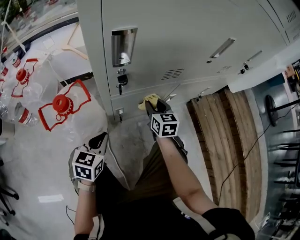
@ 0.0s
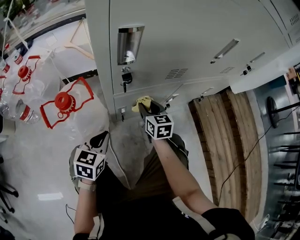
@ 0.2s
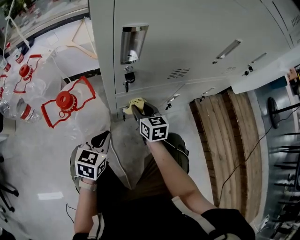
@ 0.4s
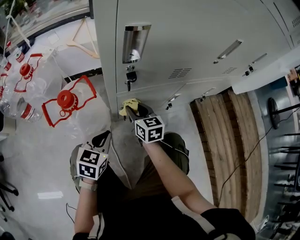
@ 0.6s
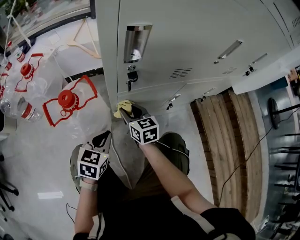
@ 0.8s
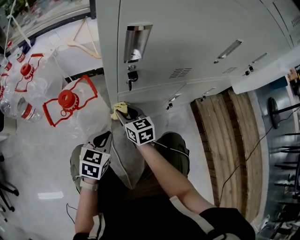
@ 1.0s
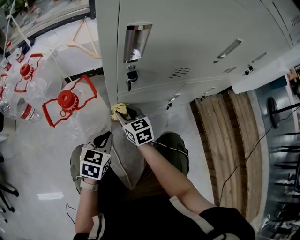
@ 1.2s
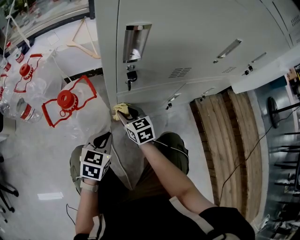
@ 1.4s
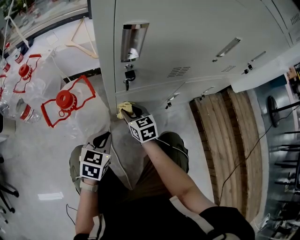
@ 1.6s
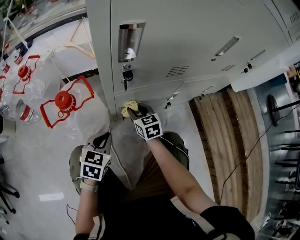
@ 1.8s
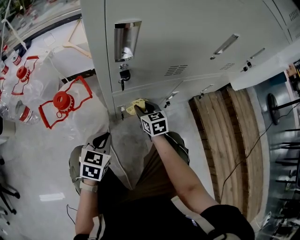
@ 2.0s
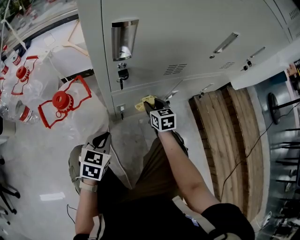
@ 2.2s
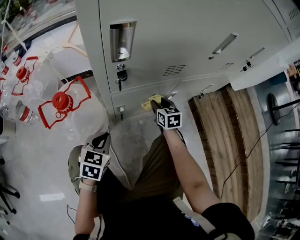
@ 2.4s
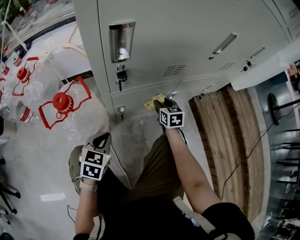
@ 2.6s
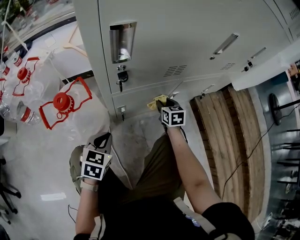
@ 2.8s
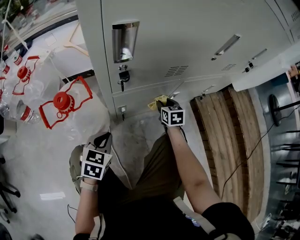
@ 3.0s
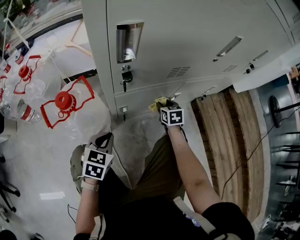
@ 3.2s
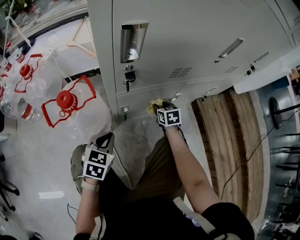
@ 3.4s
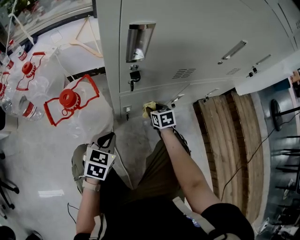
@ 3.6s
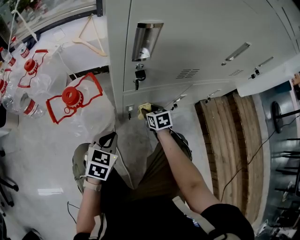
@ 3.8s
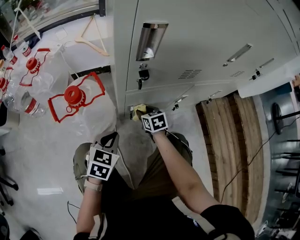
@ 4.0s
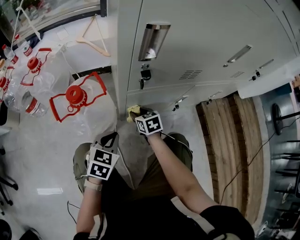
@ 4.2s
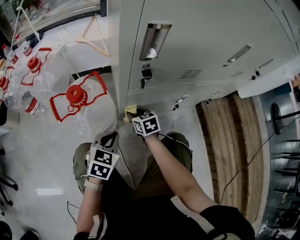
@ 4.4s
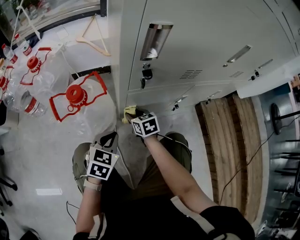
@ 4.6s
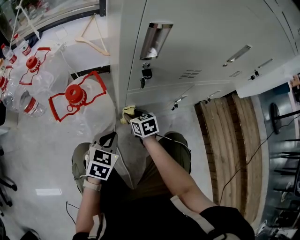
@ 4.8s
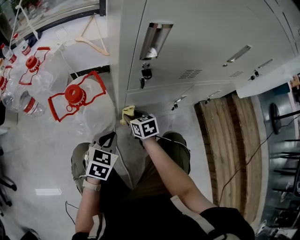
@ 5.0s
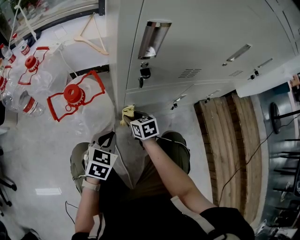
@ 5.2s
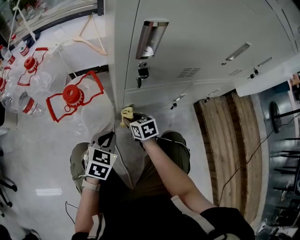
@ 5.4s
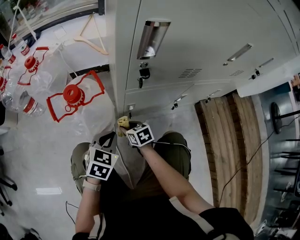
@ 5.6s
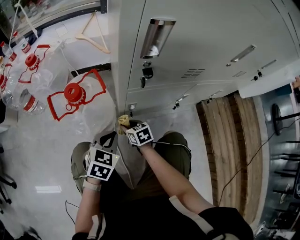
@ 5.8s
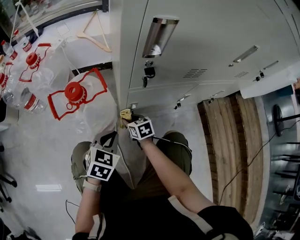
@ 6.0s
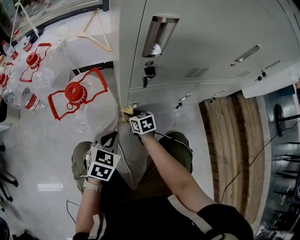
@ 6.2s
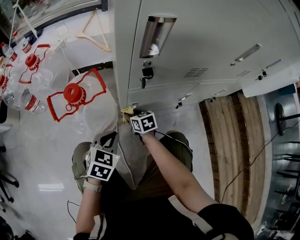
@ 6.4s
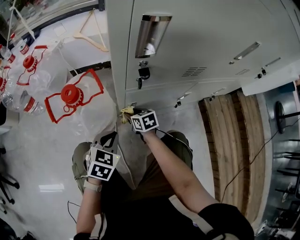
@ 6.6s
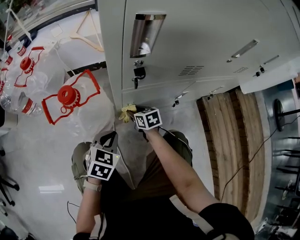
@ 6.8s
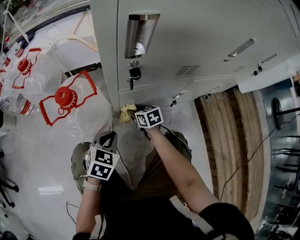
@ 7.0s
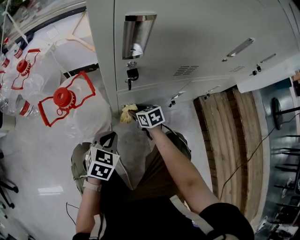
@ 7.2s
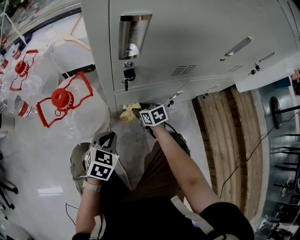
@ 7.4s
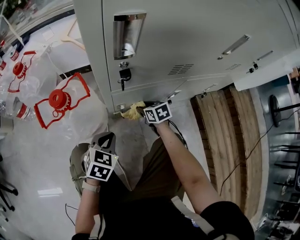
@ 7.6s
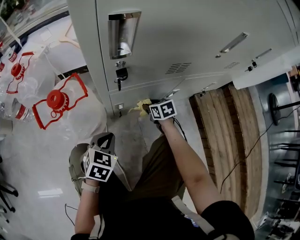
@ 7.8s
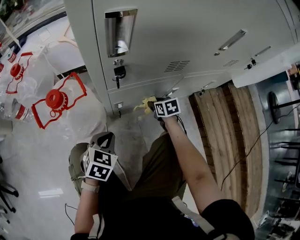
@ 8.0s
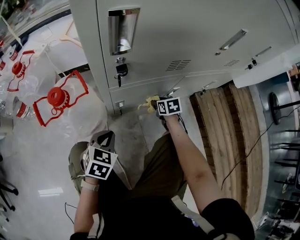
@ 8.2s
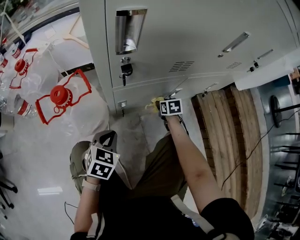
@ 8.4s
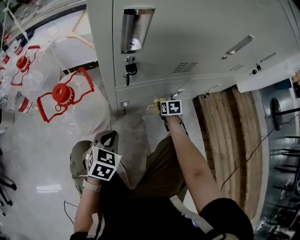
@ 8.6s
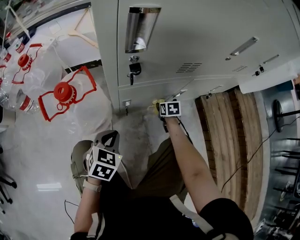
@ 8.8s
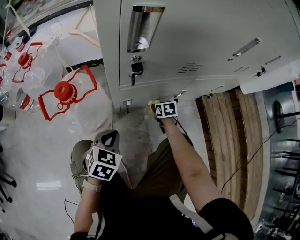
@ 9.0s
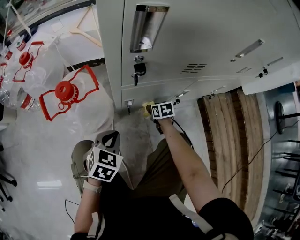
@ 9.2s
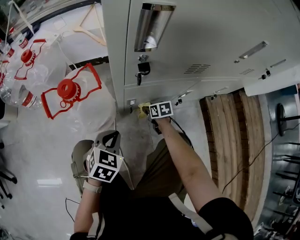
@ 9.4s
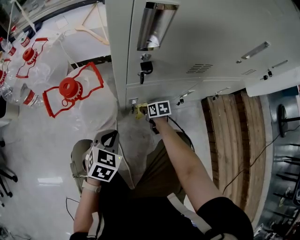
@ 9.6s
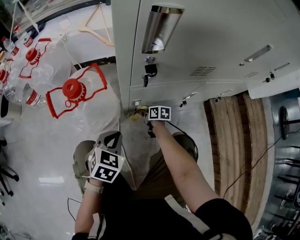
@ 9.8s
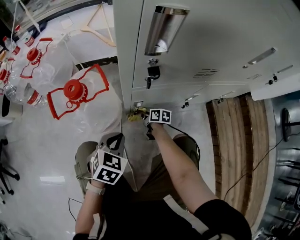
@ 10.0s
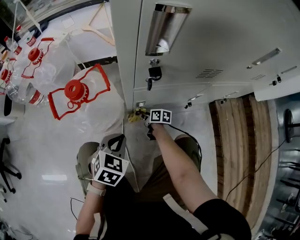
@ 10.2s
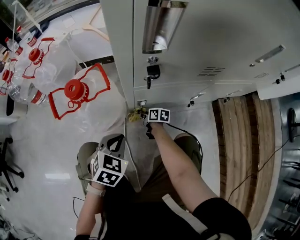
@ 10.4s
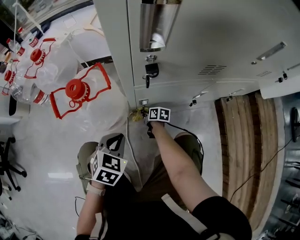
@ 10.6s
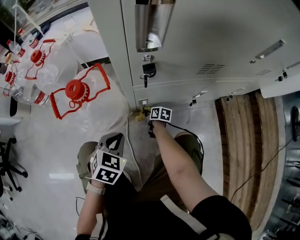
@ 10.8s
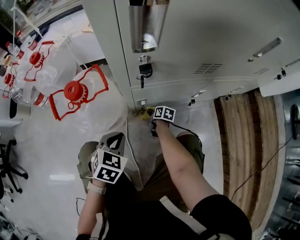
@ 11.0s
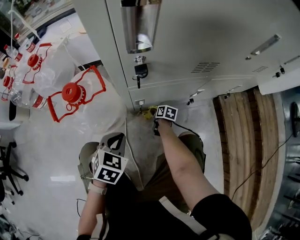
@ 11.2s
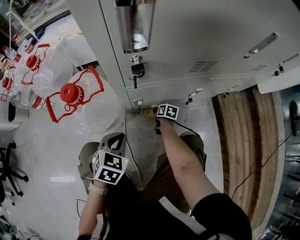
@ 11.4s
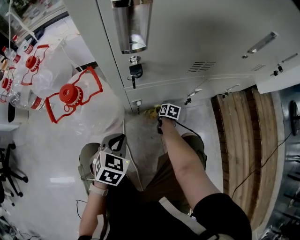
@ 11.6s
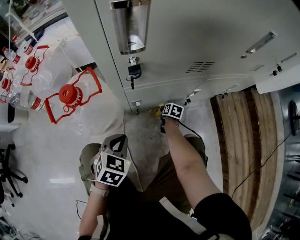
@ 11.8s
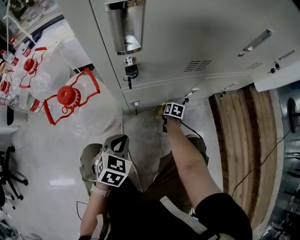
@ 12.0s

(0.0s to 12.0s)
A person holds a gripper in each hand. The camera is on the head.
0.0s - 1.6s: The right gripper travels to the left by some 15 cm.
1.6s - 3.0s: The right gripper goes some 20 cm to the right, and changes its angle by roughly 20 degrees.
3.0s - 4.4s: The right gripper heads to the left, covering roughly 20 cm, and swivels approximately 20 degrees.
4.4s - 6.0s: The right gripper moves downward, roughly 5 cm.
6.0s - 7.6s: The right gripper heads to the right, covering approximately 15 cm.
7.6s - 9.0s: The right gripper travels downward and to the right by about 10 cm.
9.0s - 10.4s: The right gripper travels to the left and downward by roughly 20 cm, and changes its angle by about 40 degrees.
10.4s - 12.0s: The right gripper heads to the right, covering roughly 20 cm, and swivels roughly 30 degrees.

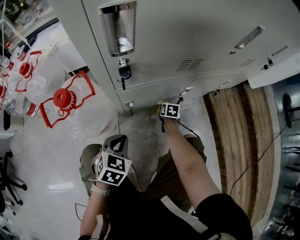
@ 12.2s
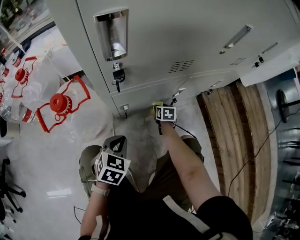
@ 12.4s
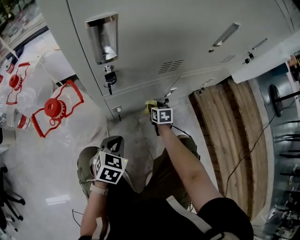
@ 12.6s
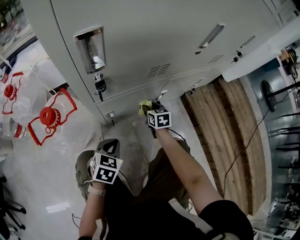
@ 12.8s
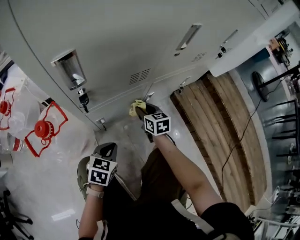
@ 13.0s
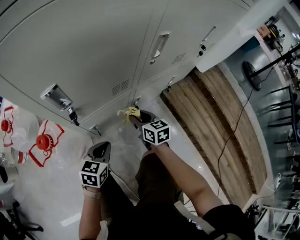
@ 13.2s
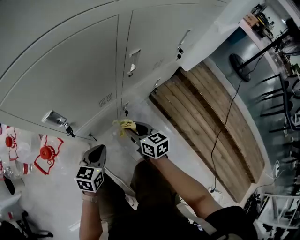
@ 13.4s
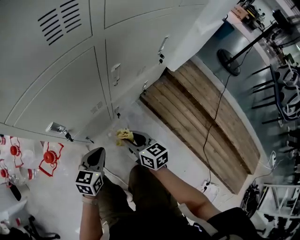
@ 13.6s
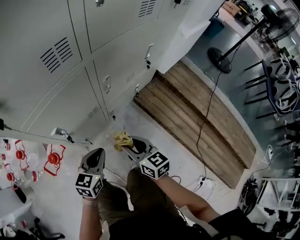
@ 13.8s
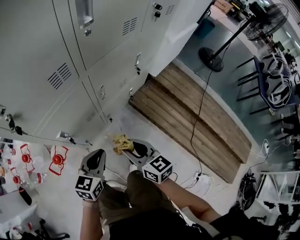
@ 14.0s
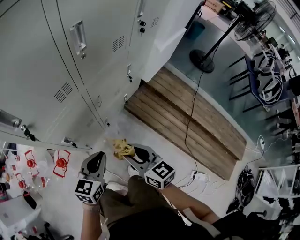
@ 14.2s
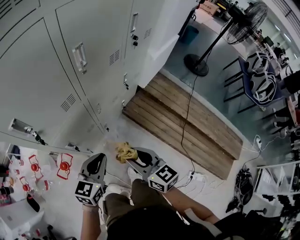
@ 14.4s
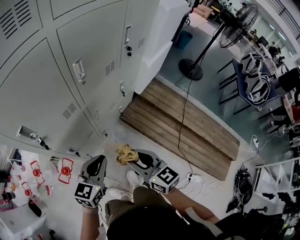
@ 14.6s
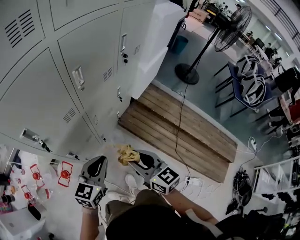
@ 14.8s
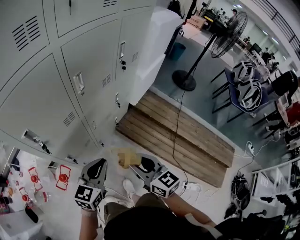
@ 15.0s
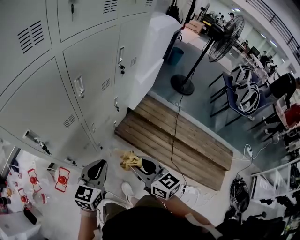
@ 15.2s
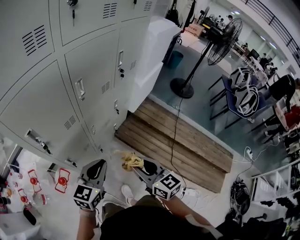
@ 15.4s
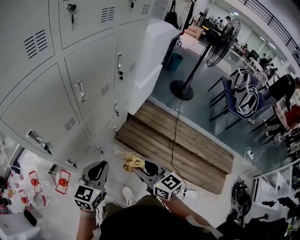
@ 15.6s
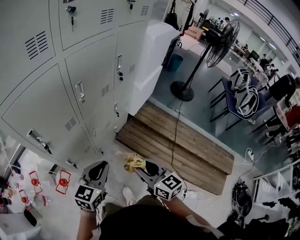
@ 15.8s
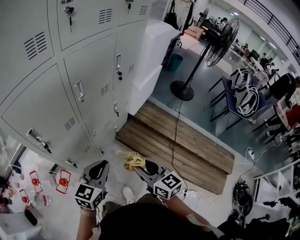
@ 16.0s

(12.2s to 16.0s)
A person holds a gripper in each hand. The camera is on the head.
12.2s - 13.4s: The left gripper is displaced upward and to the right by about 20 cm, and swivels approximately 30 degrees. Meanwhile the right gripper shifts approximately 40 cm upward, and tilts its fingers approximately 30 degrees upward.
13.4s - 14.8s: The left gripper swings up and down, roughly 20 cm each way, with 2 reversals, and rotates roughly 20 degrees, while the right gripper swings up and down, approximately 20 cm each way, with 2 reversals.
14.8s - 16.0s: The right gripper is displaced to the right by roughly 5 cm. Meanwhile the left gripper is displaced upward by some 5 cm.

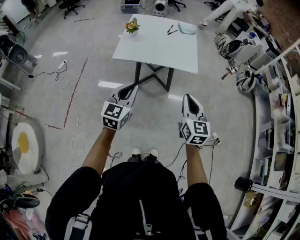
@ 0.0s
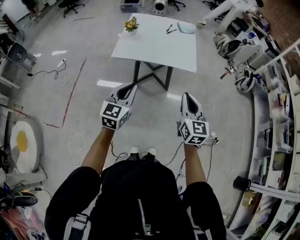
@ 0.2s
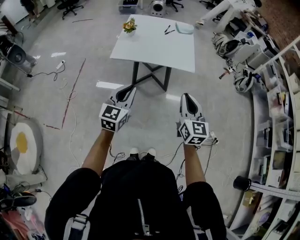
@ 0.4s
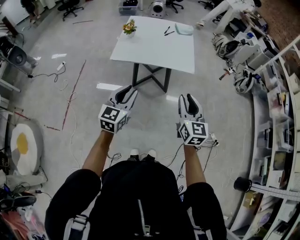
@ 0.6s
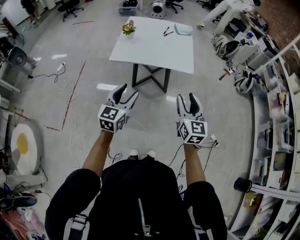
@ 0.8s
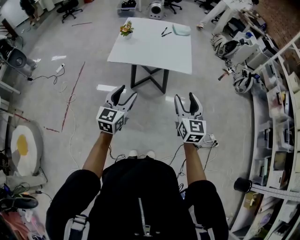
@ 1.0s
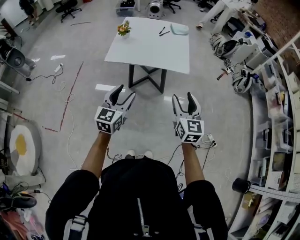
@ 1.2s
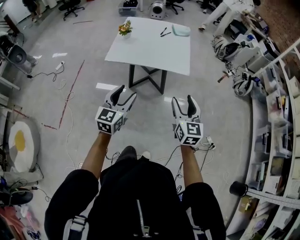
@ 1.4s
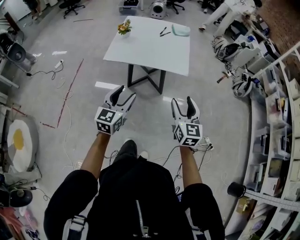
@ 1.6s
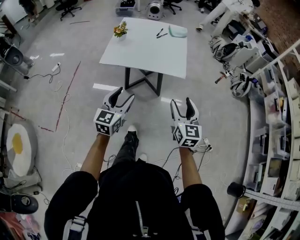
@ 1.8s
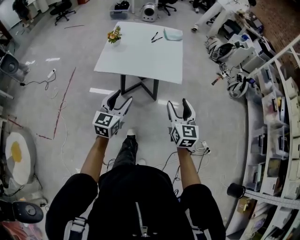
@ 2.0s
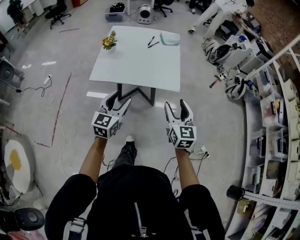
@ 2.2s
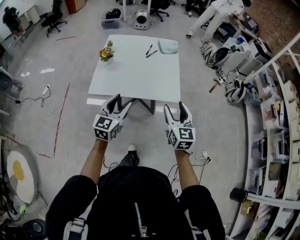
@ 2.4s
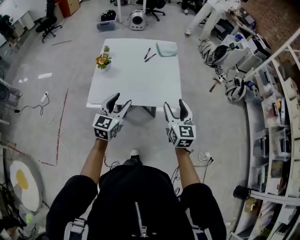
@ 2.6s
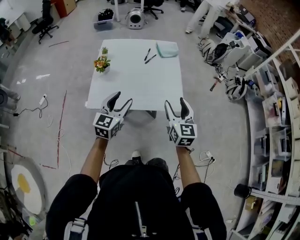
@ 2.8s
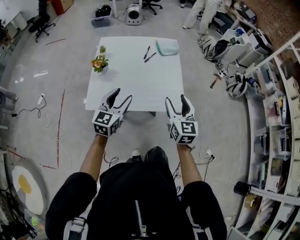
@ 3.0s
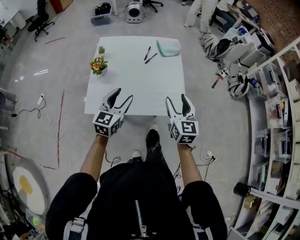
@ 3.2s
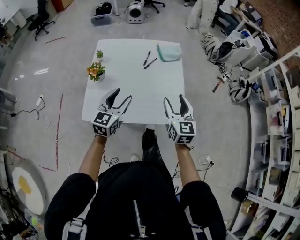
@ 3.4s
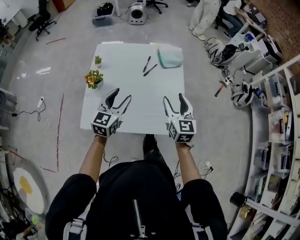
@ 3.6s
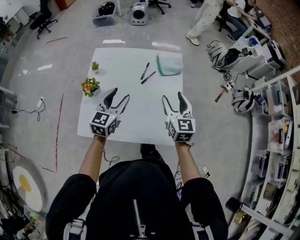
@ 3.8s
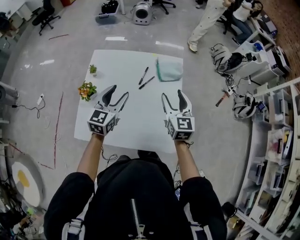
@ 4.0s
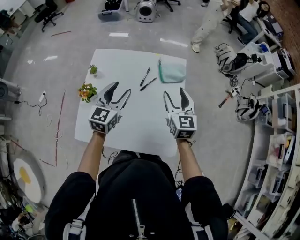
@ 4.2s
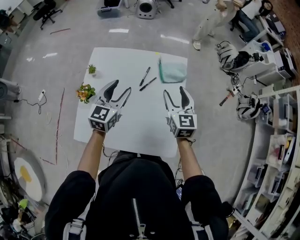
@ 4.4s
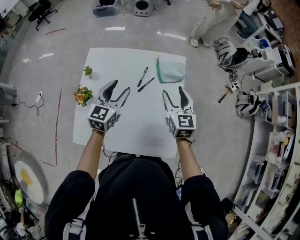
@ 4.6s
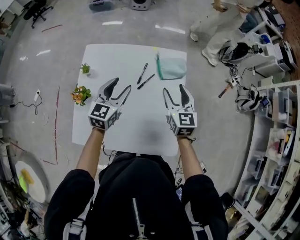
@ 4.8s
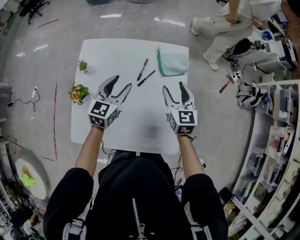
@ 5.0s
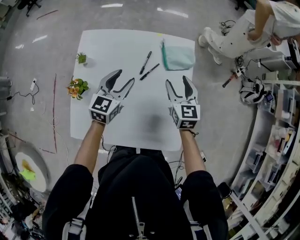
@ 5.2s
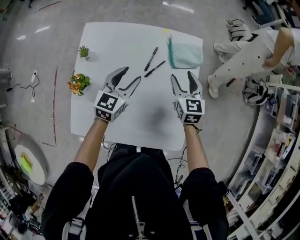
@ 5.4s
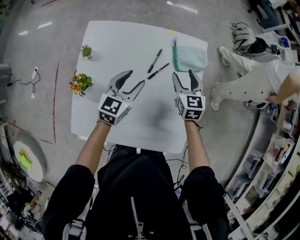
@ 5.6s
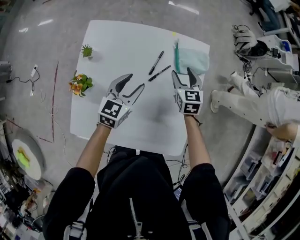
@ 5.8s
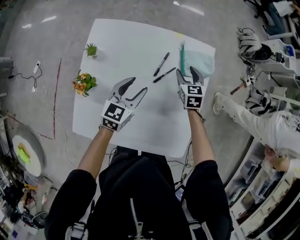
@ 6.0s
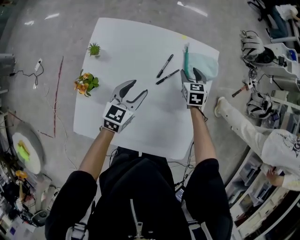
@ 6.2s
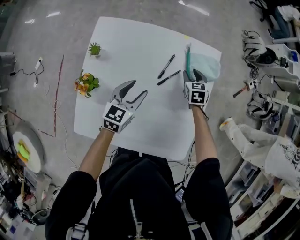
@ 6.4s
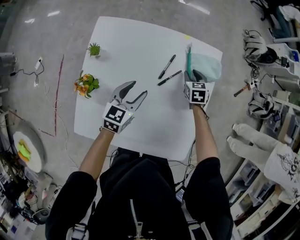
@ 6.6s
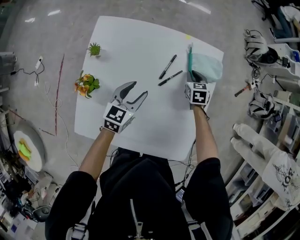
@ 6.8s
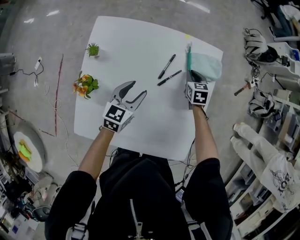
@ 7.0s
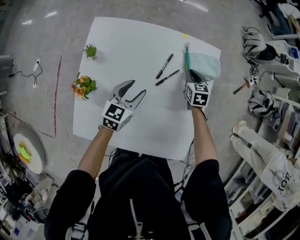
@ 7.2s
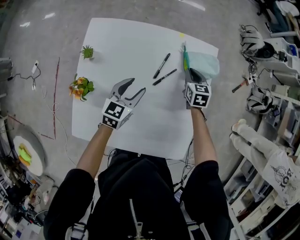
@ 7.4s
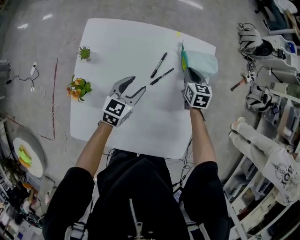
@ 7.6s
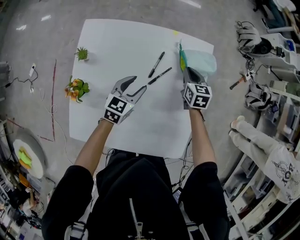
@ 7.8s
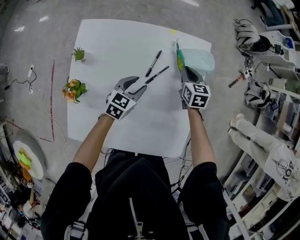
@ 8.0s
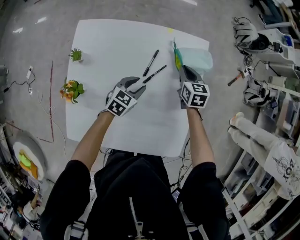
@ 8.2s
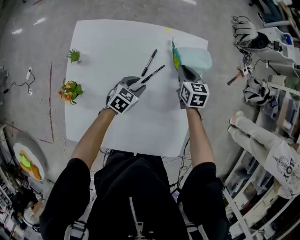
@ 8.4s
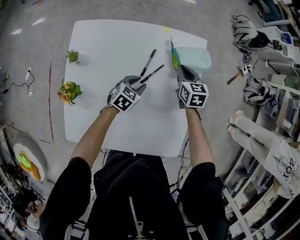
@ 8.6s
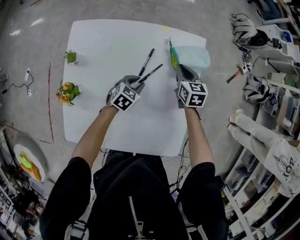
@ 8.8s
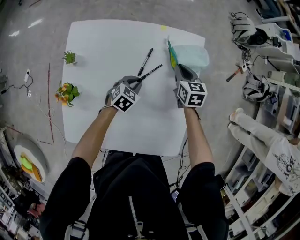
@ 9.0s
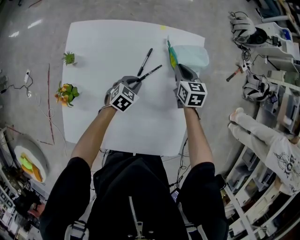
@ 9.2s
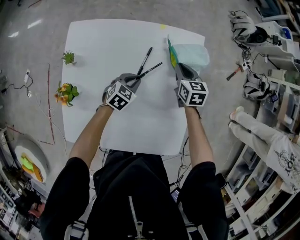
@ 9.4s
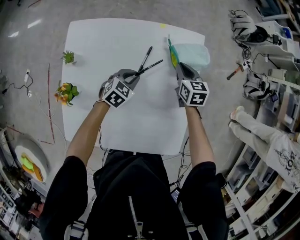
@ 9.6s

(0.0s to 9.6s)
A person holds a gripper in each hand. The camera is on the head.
0.0s - 1.6s: Both grippers move to the right, about 5 cm. The right gripper opens up; the left gripper opens.
1.6s - 3.2s: Both grippers move forward, some 40 cm.
3.2s - 4.8s: The two grippers go some 35 cm forward.
4.8s - 6.4s: The right gripper travels downward and forward by some 25 cm, and changes its angle by approximately 30 degrees. Meanwhile the left gripper heads downward, covering roughly 15 cm.
6.4s - 8.0s: The left gripper moves downward and to the right, about 10 cm. The right gripper closes.
8.0s - 9.6s: The left gripper closes its fingers.
